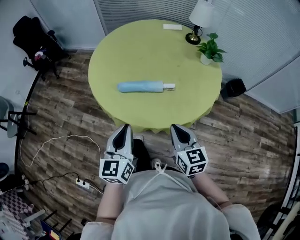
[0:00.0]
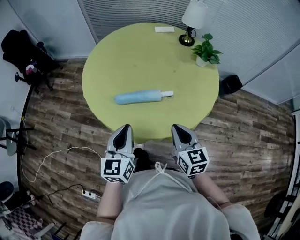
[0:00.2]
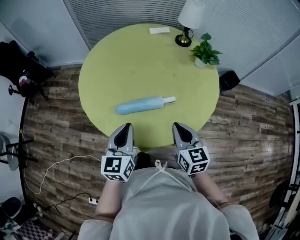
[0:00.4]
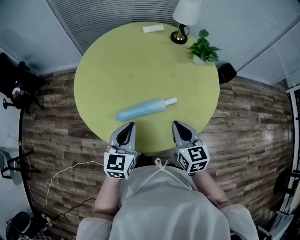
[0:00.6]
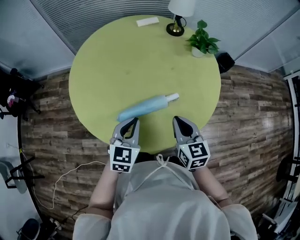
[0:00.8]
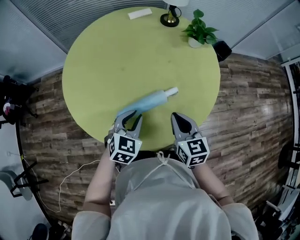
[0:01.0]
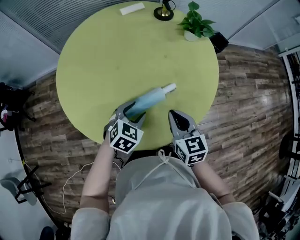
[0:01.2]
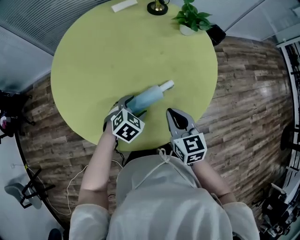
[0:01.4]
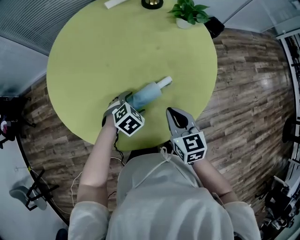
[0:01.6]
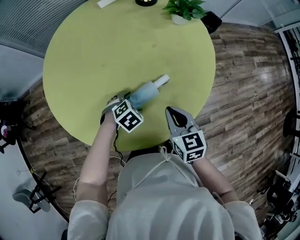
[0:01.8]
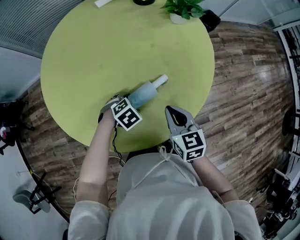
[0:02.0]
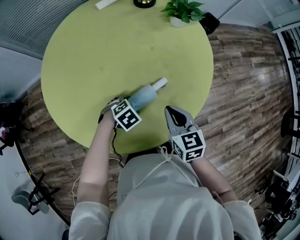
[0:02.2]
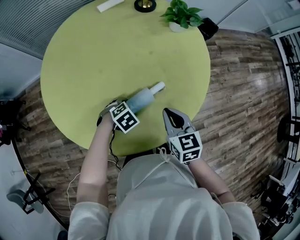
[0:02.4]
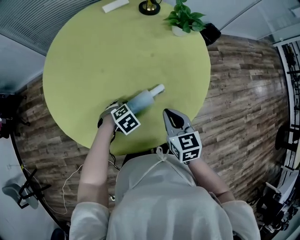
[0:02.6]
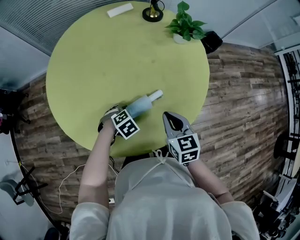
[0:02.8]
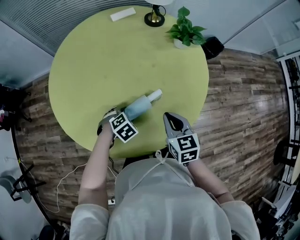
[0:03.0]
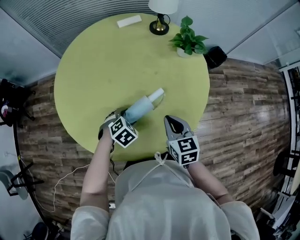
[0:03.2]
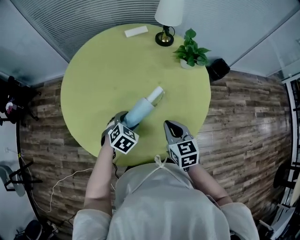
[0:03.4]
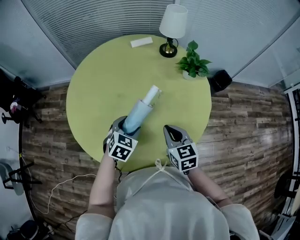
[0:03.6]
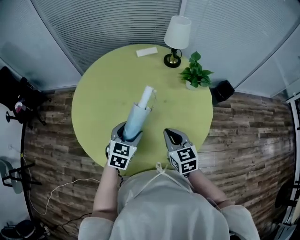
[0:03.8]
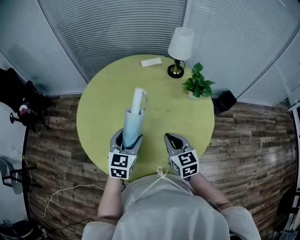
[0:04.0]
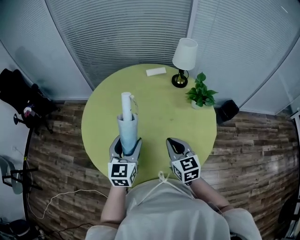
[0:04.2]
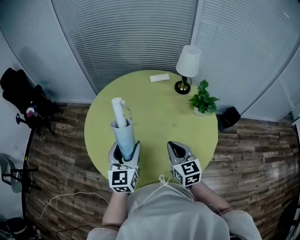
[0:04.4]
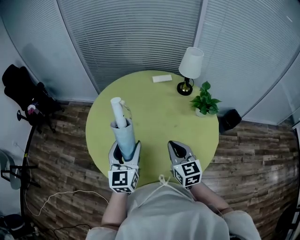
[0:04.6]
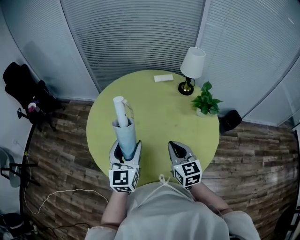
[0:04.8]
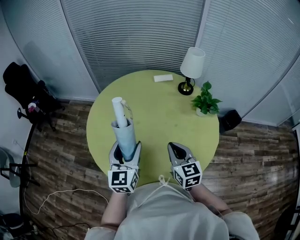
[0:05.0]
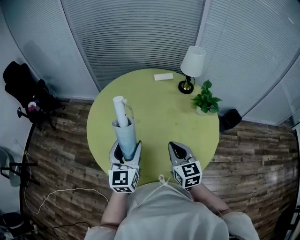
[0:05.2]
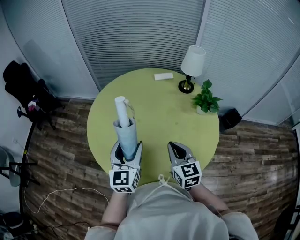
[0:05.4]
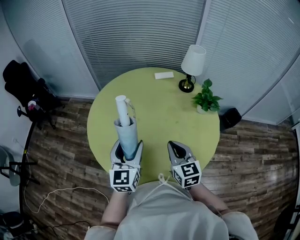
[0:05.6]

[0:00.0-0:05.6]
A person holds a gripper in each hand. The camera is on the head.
0:00.0 to 0:01.4: The left gripper moves some 35 cm, tips its fingers downward by some 50 degrees, and opens its fingers. The right gripper changes place by roughly 25 cm, and changes its angle by roughly 30 degrees.
0:01.4 to 0:02.8: The right gripper moves roughly 5 cm, while the left gripper is displaced downward by roughly 5 cm, and swivels approximately 20 degrees.
0:02.8 to 0:04.2: The right gripper is displaced upward by some 10 cm, and turns by roughly 20 degrees. The left gripper shifts roughly 30 cm upward, and angles its fingers upward, by approximately 60 degrees.
0:04.2 to 0:05.6: The left gripper moves about 5 cm.

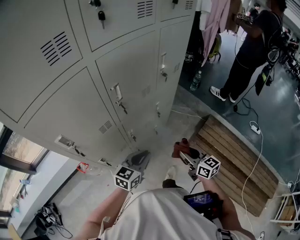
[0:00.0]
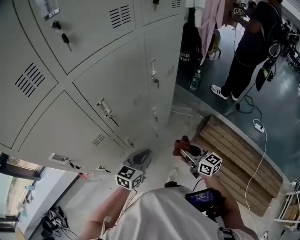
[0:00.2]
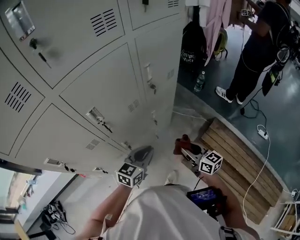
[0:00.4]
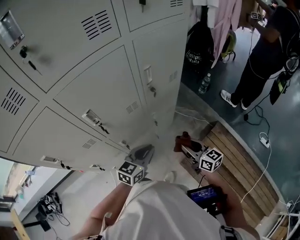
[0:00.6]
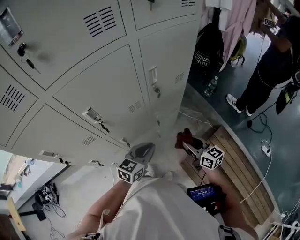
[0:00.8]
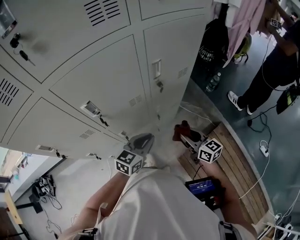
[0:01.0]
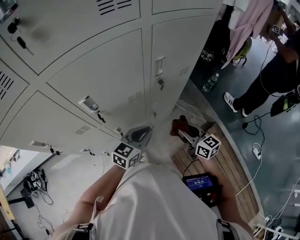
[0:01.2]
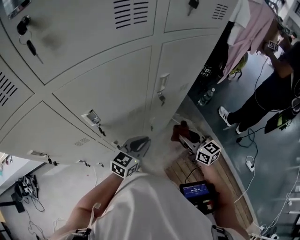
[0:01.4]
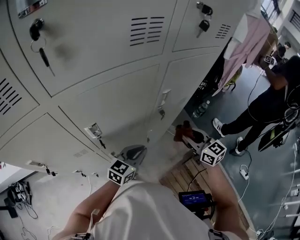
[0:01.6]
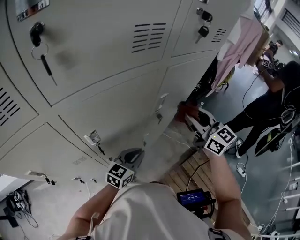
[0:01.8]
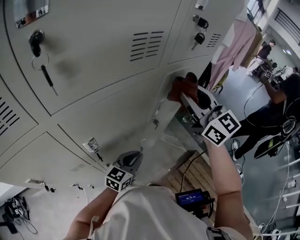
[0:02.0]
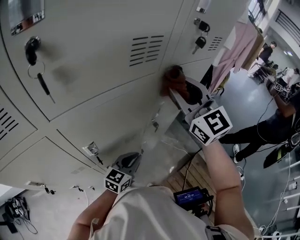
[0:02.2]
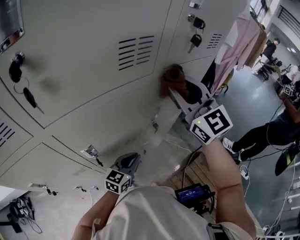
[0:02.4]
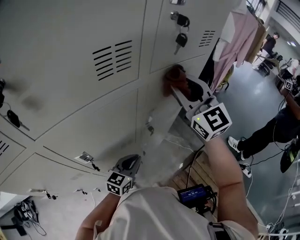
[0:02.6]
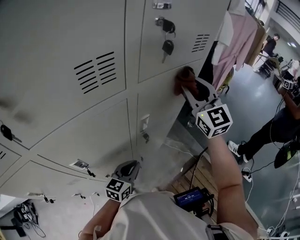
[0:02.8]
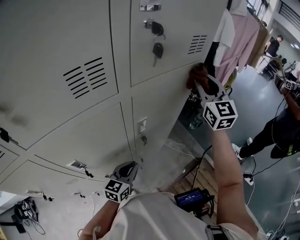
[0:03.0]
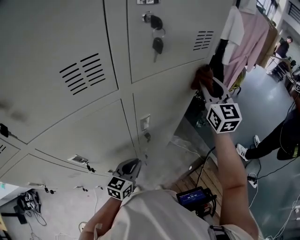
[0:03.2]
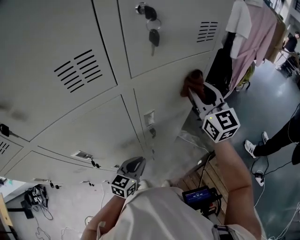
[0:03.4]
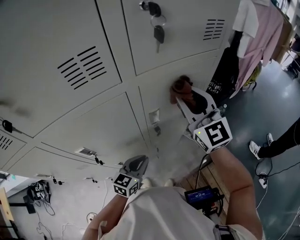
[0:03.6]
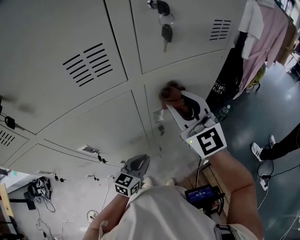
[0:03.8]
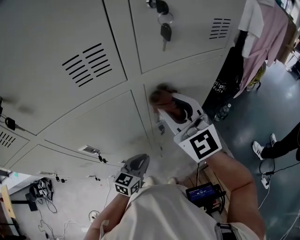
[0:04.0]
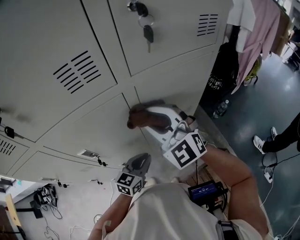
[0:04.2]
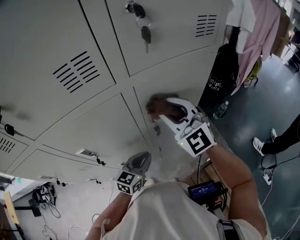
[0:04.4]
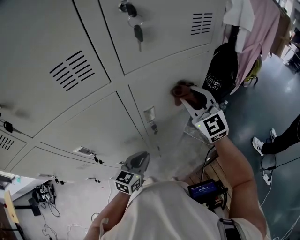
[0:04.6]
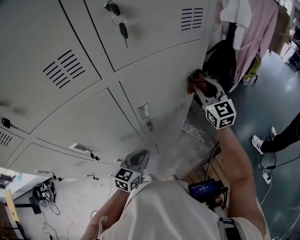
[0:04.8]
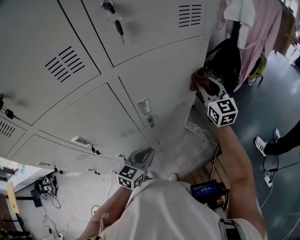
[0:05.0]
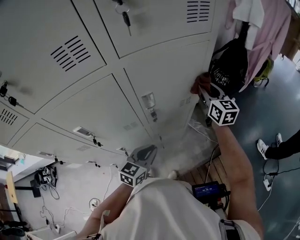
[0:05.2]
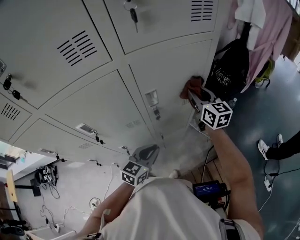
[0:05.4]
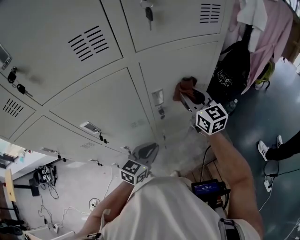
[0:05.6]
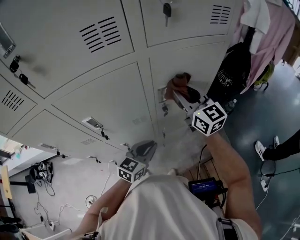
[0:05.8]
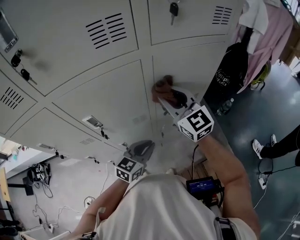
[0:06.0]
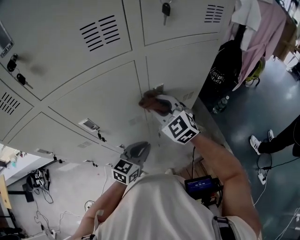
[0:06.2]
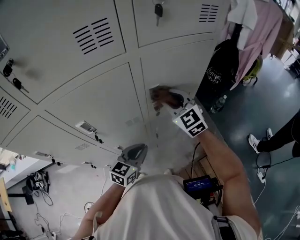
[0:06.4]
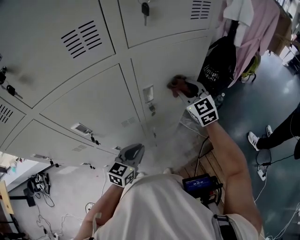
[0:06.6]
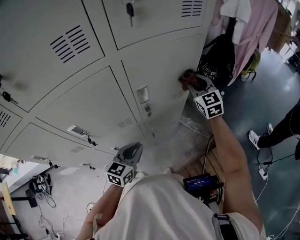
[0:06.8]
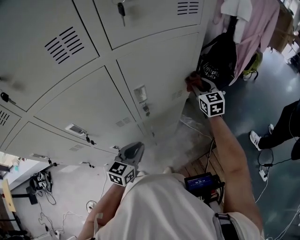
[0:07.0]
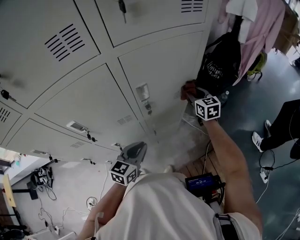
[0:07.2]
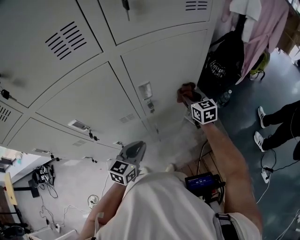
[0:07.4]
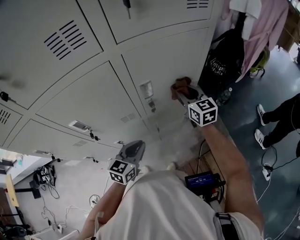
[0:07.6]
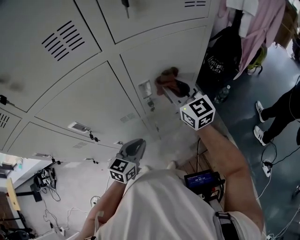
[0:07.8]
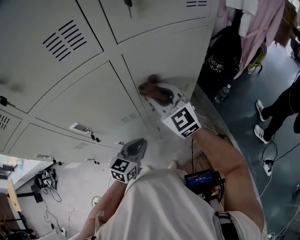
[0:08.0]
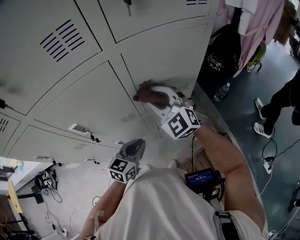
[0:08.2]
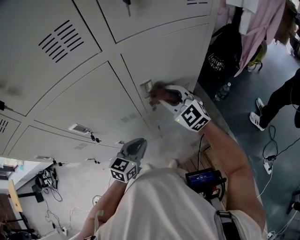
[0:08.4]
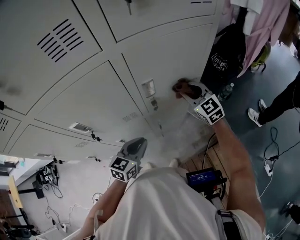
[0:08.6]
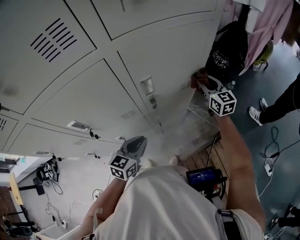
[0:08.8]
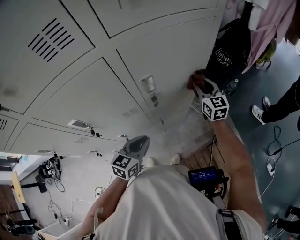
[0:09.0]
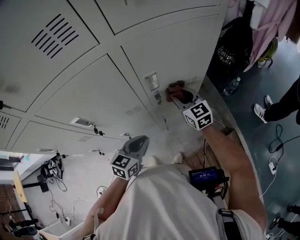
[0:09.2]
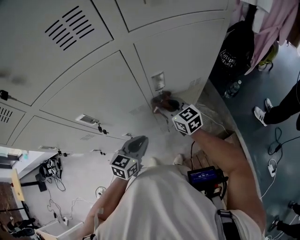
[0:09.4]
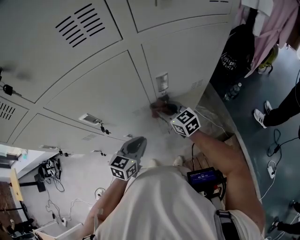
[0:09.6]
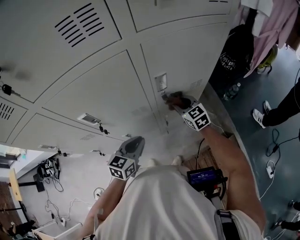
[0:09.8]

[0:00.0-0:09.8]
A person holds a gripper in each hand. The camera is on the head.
0:00.0 to 0:01.4: The two grippers go roughly 25 cm forward and to the right. The right gripper rotates approximately 20 degrees.
0:01.4 to 0:02.8: The right gripper is displaced upward and forward by roughly 40 cm, and changes its angle by about 40 degrees; the left gripper moves forward, about 5 cm.
0:02.8 to 0:04.2: The right gripper is displaced to the left, backward and downward by some 20 cm, and changes its angle by roughly 30 degrees.
0:04.2 to 0:05.6: The left gripper changes place by about 5 cm. The right gripper is displaced to the right, forward and downward by approximately 20 cm, and rolls clockwise, seen from behind, by about 40 degrees.
0:05.6 to 0:07.0: The right gripper goes approximately 15 cm to the right, downward and forward, and changes its angle by some 20 degrees.
0:07.0 to 0:08.4: The right gripper is displaced to the left and backward by roughly 20 cm, and rotates approximately 40 degrees.
0:08.4 to 0:09.8: The left gripper shifts approximately 5 cm to the left. The right gripper goes left and right, approximately 25 cm each way, reversing 2 times, and turns by some 30 degrees.

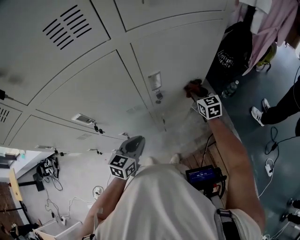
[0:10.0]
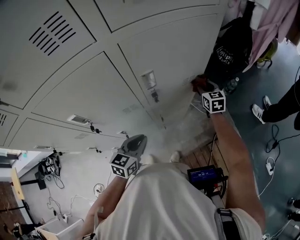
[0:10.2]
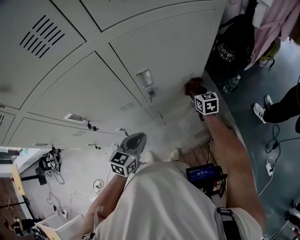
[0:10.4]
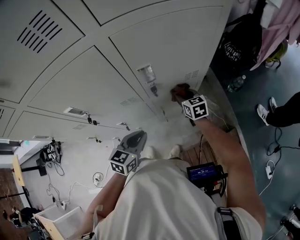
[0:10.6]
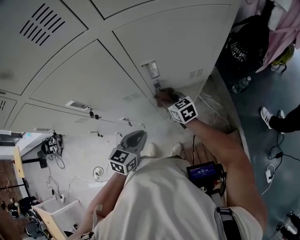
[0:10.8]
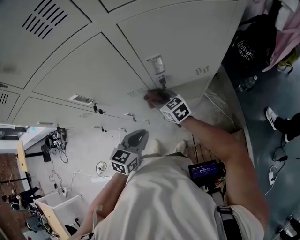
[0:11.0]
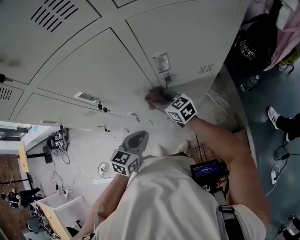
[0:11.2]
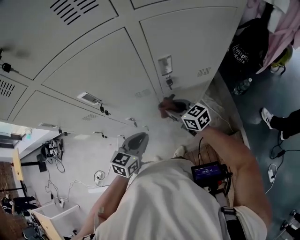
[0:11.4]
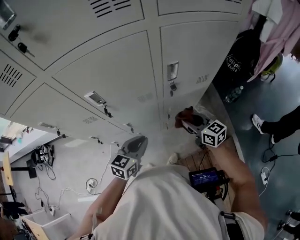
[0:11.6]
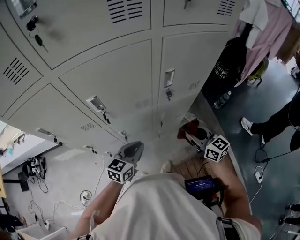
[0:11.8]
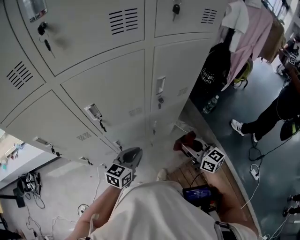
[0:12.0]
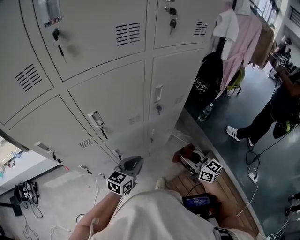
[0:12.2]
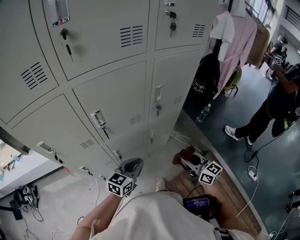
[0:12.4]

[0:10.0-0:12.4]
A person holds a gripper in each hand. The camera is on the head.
0:10.0 to 0:11.2: The right gripper moves approximately 25 cm, and rotates roughly 40 degrees.
0:11.2 to 0:12.4: The right gripper ends up some 30 cm from where it was, and changes its angle by approximately 30 degrees. Meanwhile the left gripper moves approximately 5 cm, and swivels about 30 degrees.

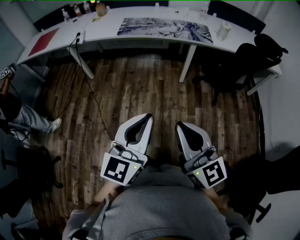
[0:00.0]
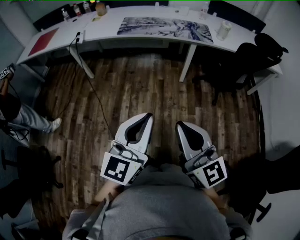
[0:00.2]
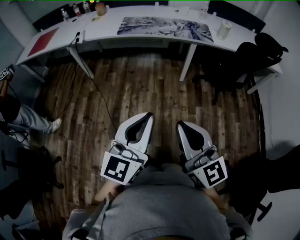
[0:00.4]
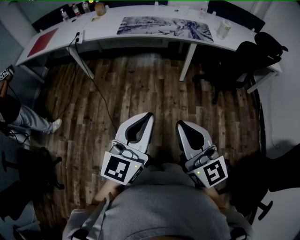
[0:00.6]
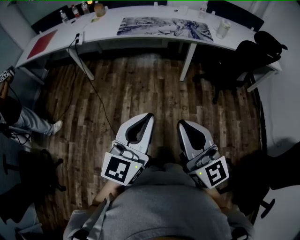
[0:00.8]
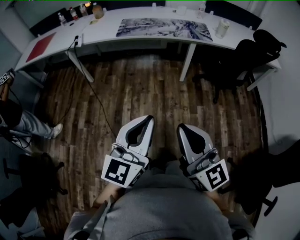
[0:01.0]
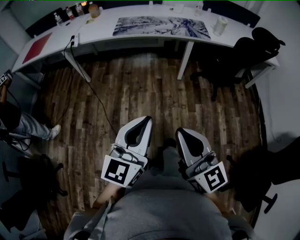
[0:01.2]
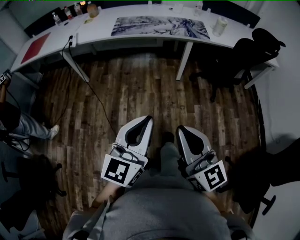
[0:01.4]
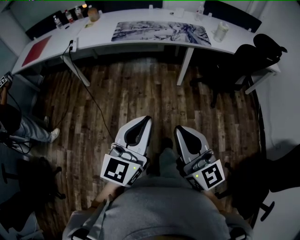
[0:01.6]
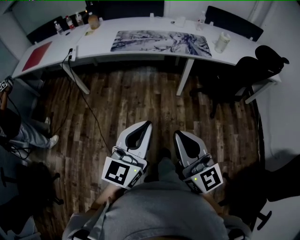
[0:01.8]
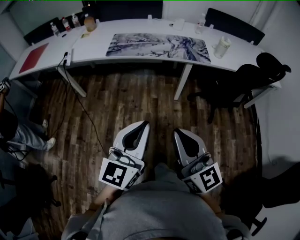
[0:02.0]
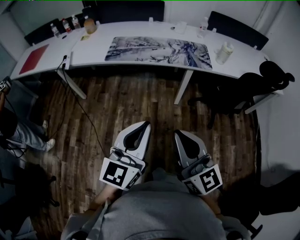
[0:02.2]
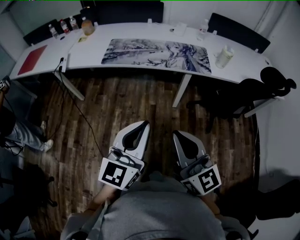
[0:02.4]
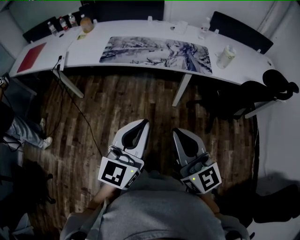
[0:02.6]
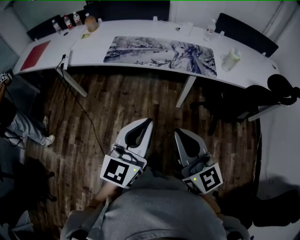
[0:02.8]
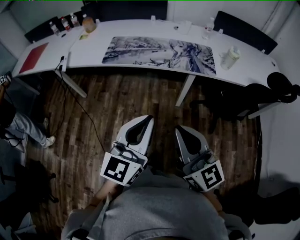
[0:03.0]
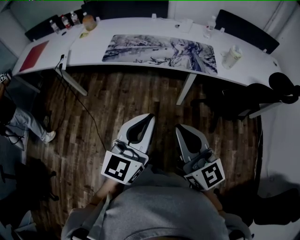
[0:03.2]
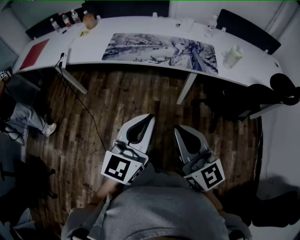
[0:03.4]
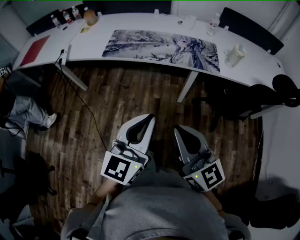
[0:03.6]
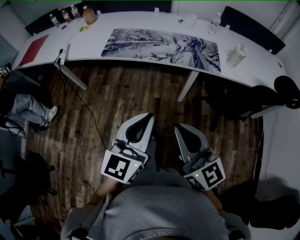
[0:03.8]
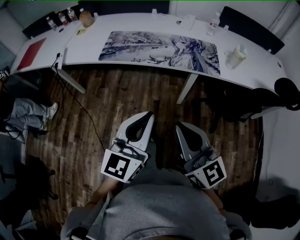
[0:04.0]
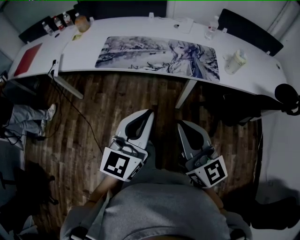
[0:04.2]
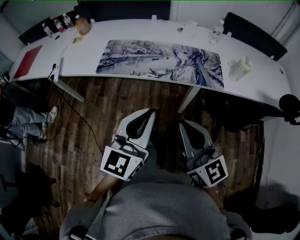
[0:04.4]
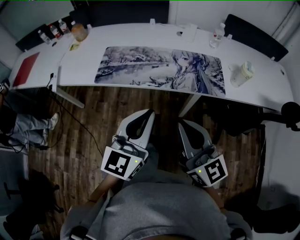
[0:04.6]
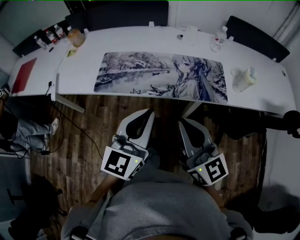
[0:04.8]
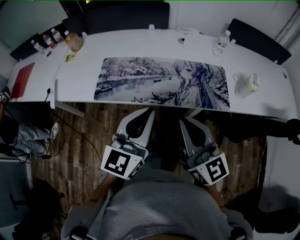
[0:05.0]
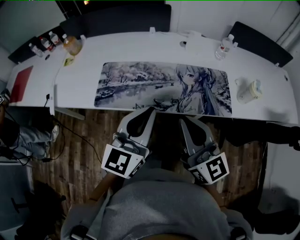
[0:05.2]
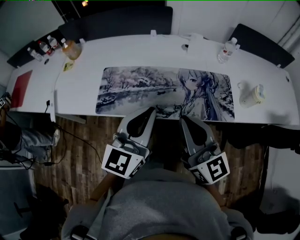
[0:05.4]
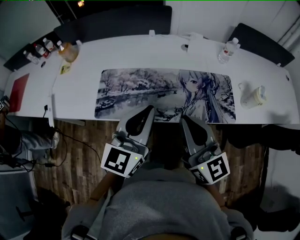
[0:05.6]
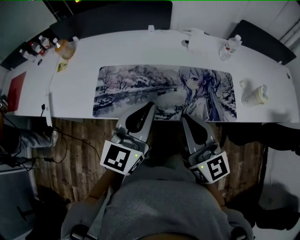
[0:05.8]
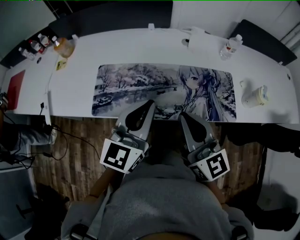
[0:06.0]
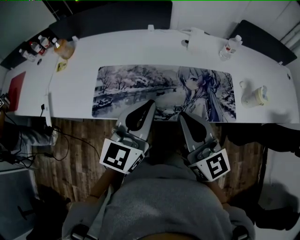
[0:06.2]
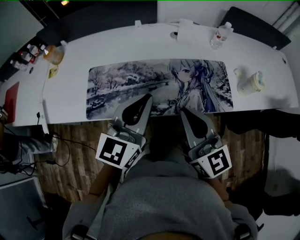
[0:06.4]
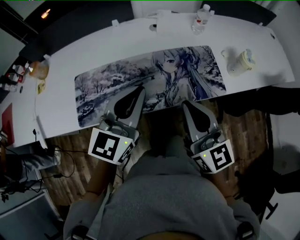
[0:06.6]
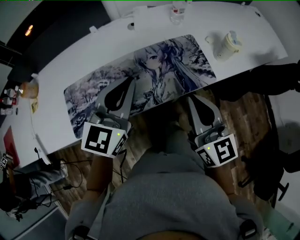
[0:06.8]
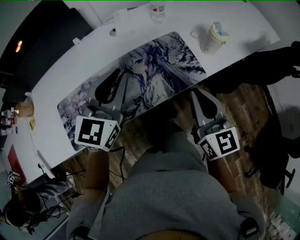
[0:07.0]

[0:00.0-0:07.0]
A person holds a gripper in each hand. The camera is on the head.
0:00.0 to 0:01.4: The grippers make only small movements.
0:01.4 to 0:02.8: The two grippers go roughly 25 cm forward.
0:02.8 to 0:04.2: The two grippers go about 10 cm forward.
0:04.2 to 0:05.6: Both grippers move forward, some 30 cm.
0:05.6 to 0:07.0: The left gripper ends up about 20 cm from where it was, and swivels approximately 30 degrees, while the right gripper shifts by roughly 20 cm, and turns by some 40 degrees.
